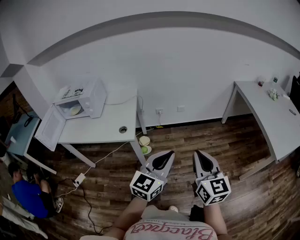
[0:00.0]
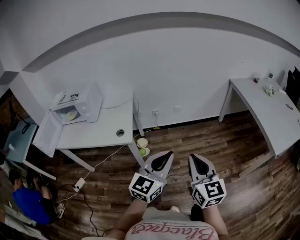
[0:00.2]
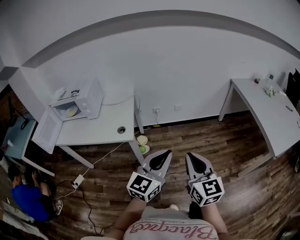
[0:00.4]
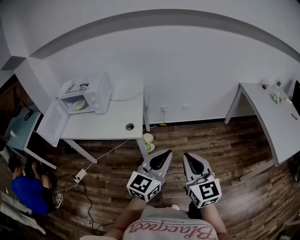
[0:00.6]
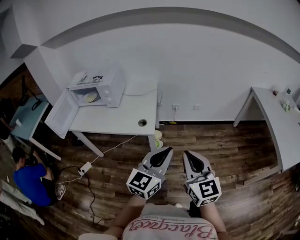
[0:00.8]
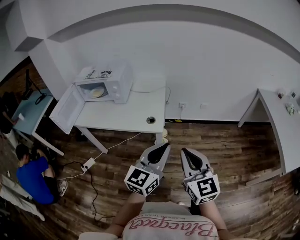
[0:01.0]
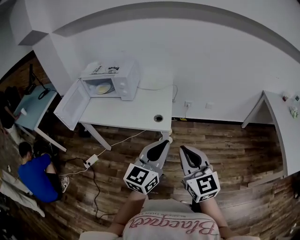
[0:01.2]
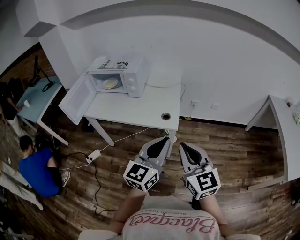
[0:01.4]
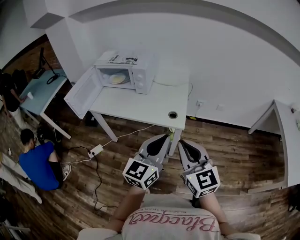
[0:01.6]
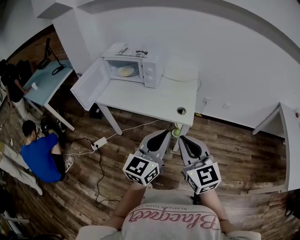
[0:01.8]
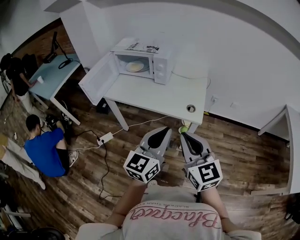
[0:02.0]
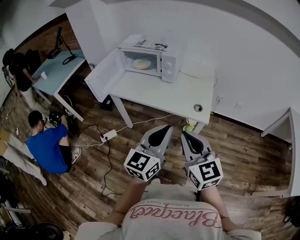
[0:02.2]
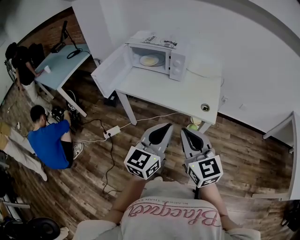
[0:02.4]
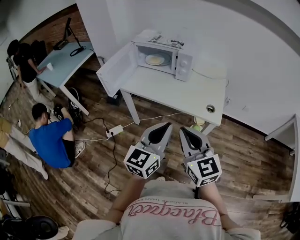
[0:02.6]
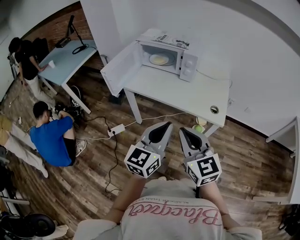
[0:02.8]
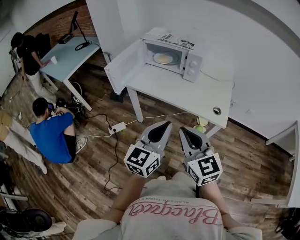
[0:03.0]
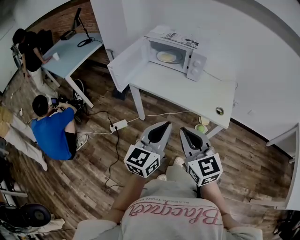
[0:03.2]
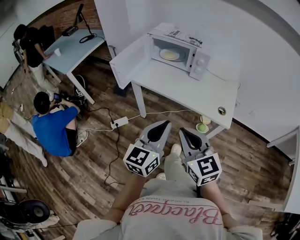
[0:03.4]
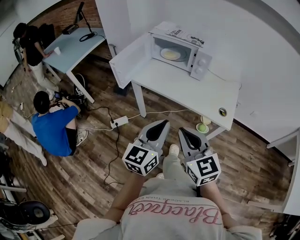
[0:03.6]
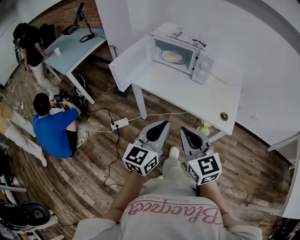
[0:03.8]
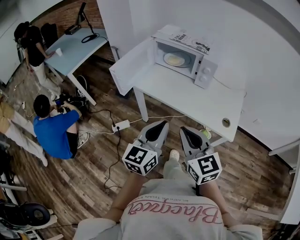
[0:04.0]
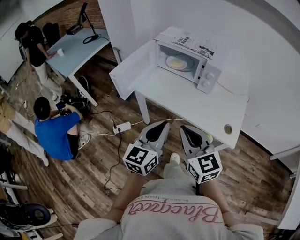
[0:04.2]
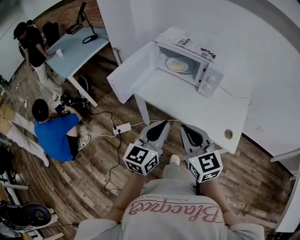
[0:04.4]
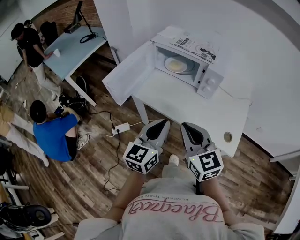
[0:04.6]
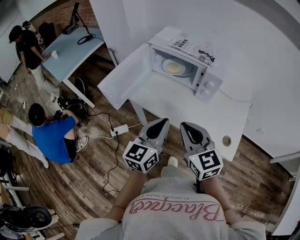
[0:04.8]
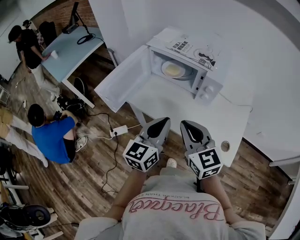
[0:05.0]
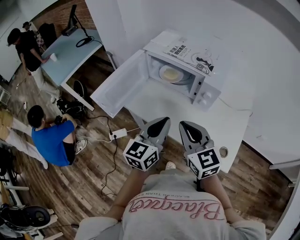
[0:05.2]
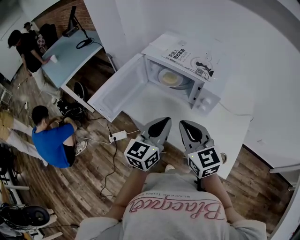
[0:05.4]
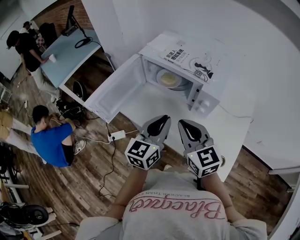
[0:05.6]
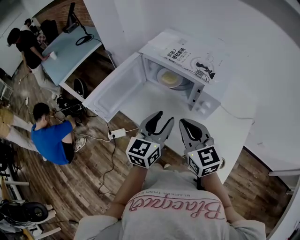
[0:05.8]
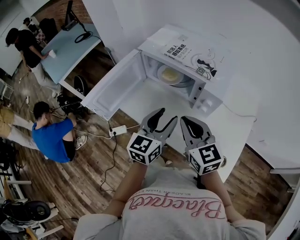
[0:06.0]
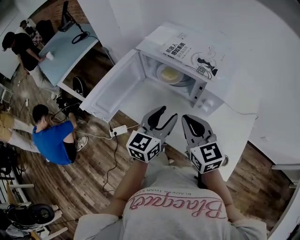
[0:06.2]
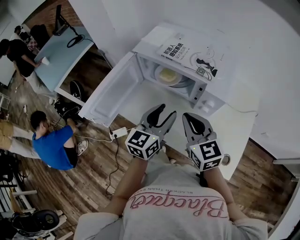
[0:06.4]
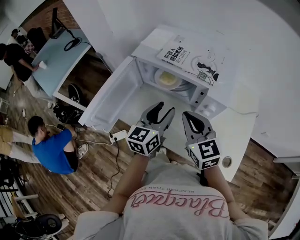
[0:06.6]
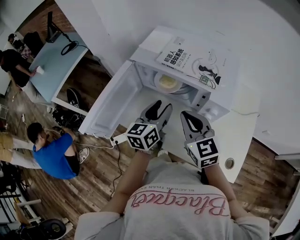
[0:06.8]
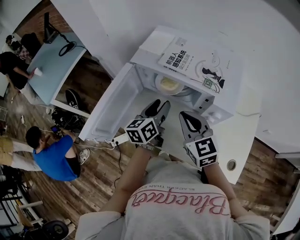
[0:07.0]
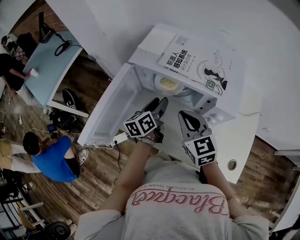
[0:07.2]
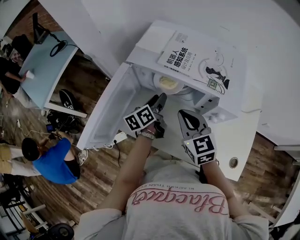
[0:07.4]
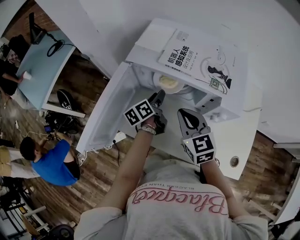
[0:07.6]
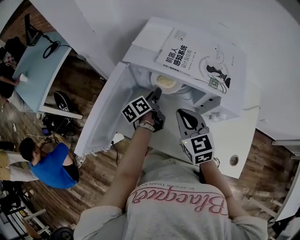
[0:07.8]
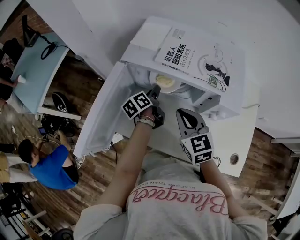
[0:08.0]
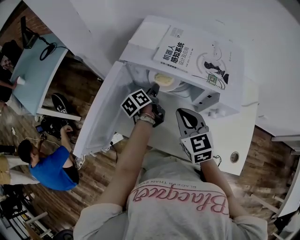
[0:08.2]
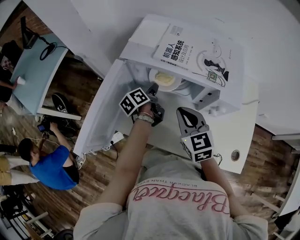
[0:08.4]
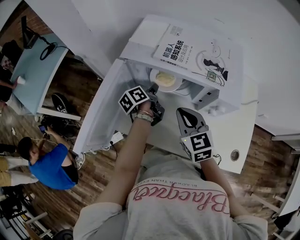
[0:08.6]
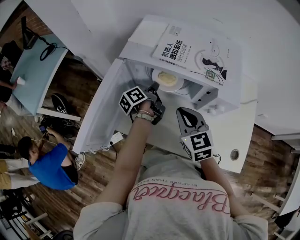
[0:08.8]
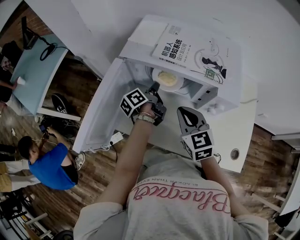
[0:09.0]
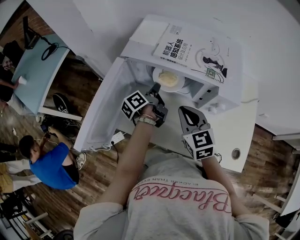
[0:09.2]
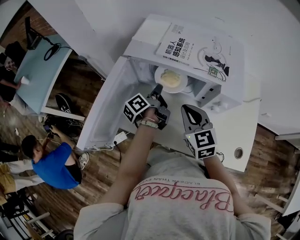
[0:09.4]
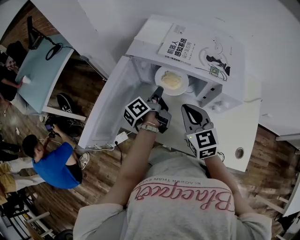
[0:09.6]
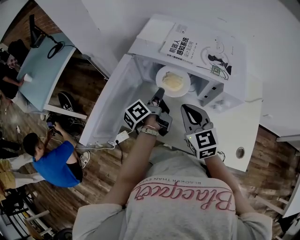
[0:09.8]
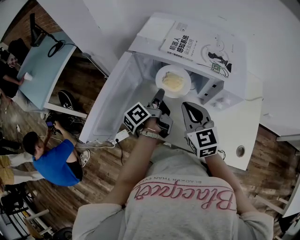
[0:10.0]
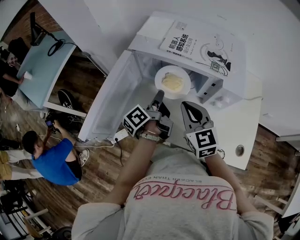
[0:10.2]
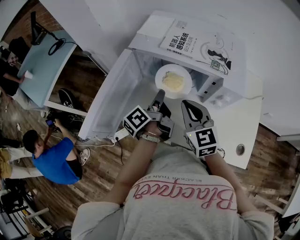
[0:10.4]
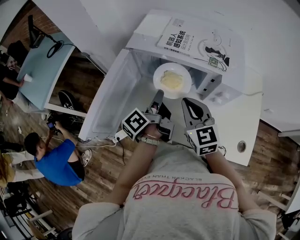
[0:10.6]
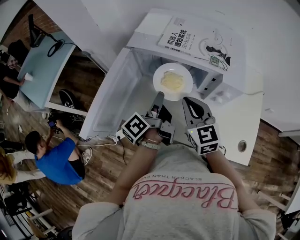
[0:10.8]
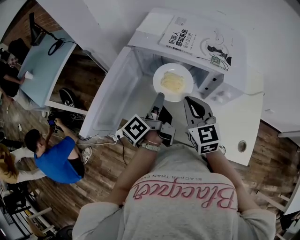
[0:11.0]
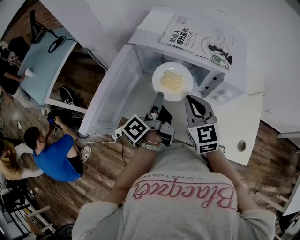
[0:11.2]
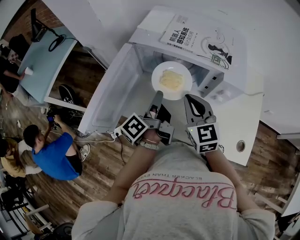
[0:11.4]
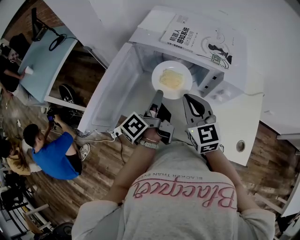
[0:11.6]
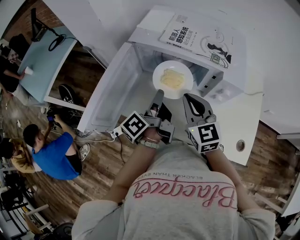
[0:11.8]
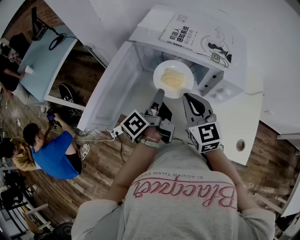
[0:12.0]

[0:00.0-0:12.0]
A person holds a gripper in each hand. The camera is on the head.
0:00.0 to 0:01.6: The two grippers go some 35 cm to the left. The right gripper changes its angle by some 30 degrees; the left gripper changes its angle by roughly 20 degrees.
0:01.6 to 0:03.0: Both grippers travel together to the left, about 25 cm.
0:03.0 to 0:04.4: Both grippers travel together forward, about 15 cm.
0:04.4 to 0:06.0: The right gripper heads forward, covering some 20 cm. Meanwhile the left gripper is displaced forward and to the right by some 20 cm, and opens its fingers.
0:06.0 to 0:07.6: The right gripper travels forward and downward by approximately 15 cm, while the left gripper shifts approximately 30 cm forward and downward, and rolls counterclockwise, seen from behind, by approximately 50 degrees.
0:07.6 to 0:09.0: The left gripper closes up.
0:09.0 to 0:10.4: The left gripper shifts some 10 cm backward and upward.
0:10.4 to 0:12.0: The grippers stay close to where they were, moving slightly.

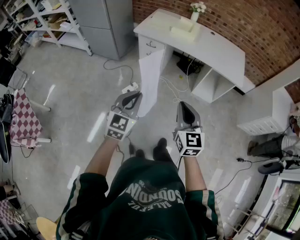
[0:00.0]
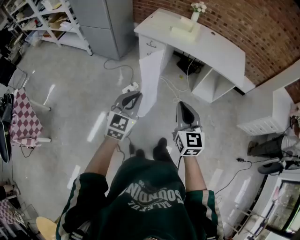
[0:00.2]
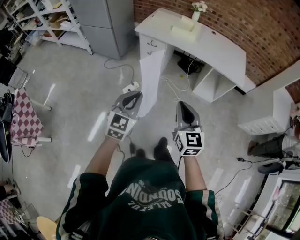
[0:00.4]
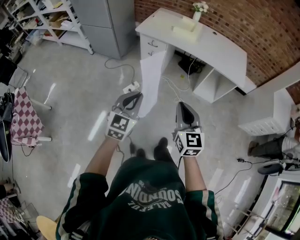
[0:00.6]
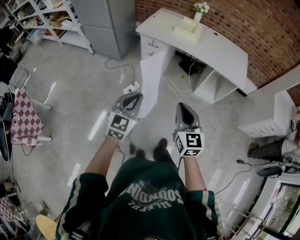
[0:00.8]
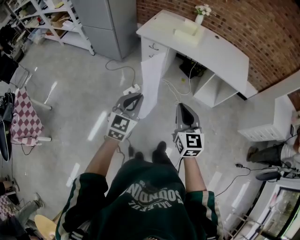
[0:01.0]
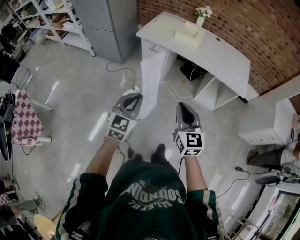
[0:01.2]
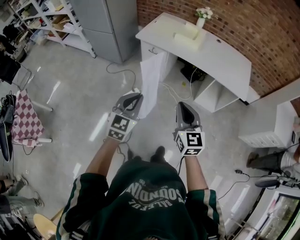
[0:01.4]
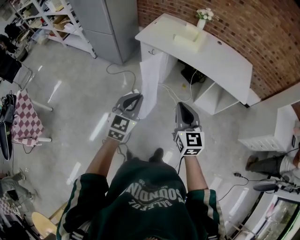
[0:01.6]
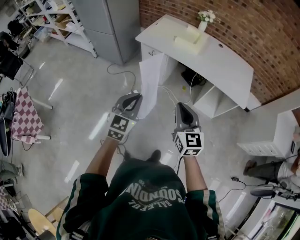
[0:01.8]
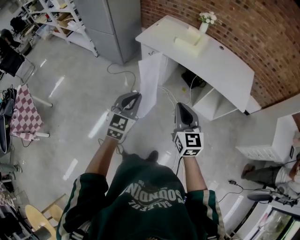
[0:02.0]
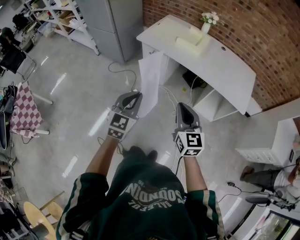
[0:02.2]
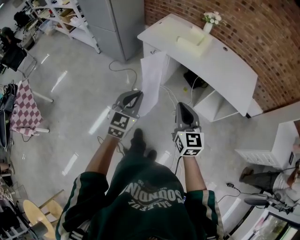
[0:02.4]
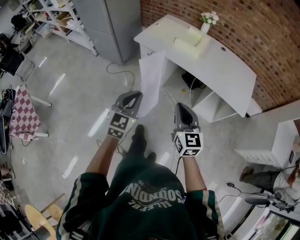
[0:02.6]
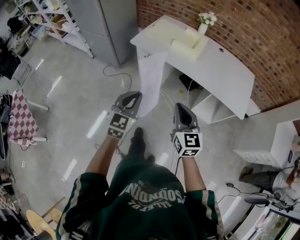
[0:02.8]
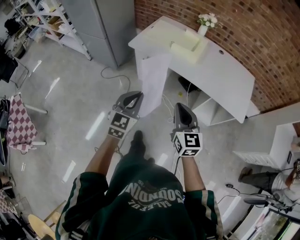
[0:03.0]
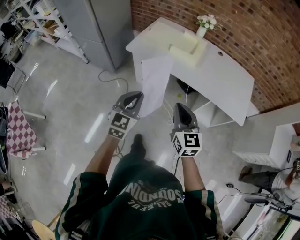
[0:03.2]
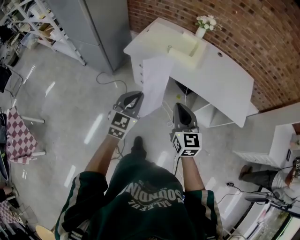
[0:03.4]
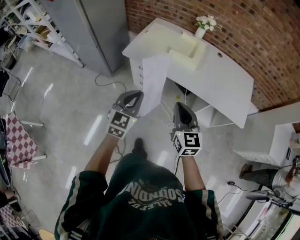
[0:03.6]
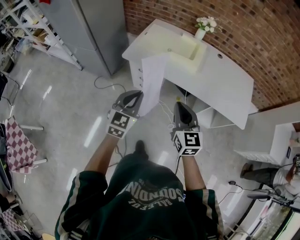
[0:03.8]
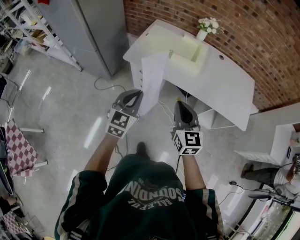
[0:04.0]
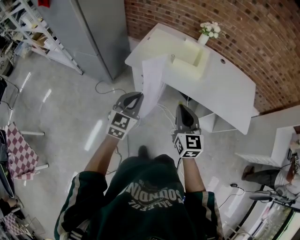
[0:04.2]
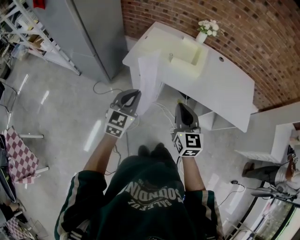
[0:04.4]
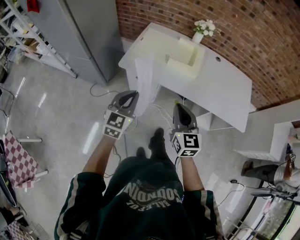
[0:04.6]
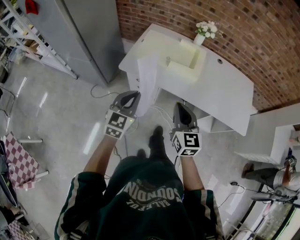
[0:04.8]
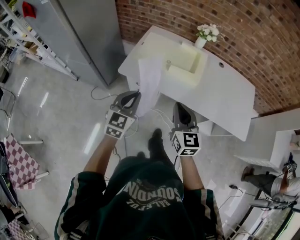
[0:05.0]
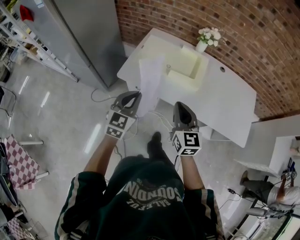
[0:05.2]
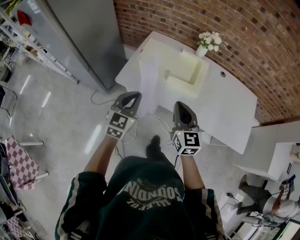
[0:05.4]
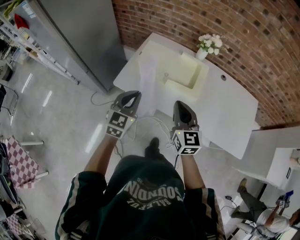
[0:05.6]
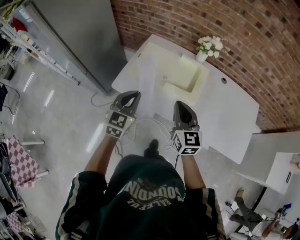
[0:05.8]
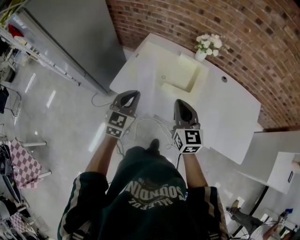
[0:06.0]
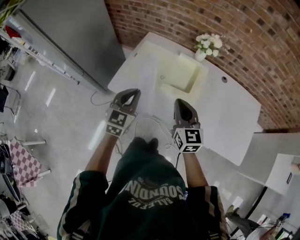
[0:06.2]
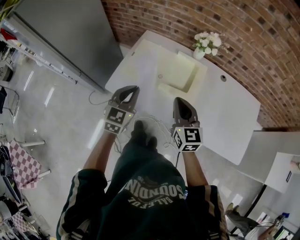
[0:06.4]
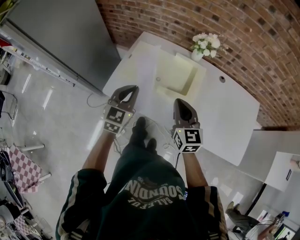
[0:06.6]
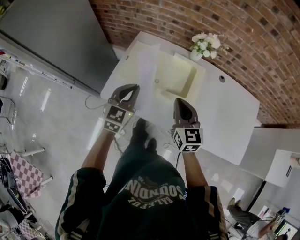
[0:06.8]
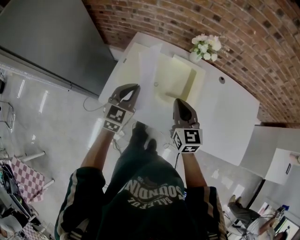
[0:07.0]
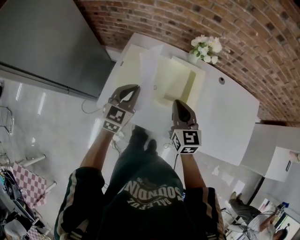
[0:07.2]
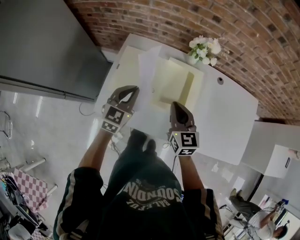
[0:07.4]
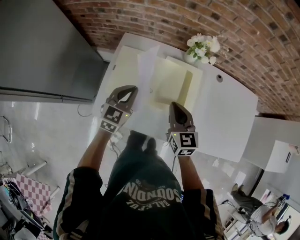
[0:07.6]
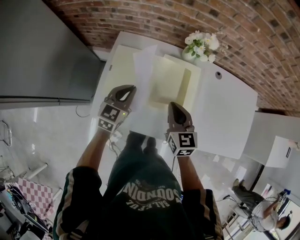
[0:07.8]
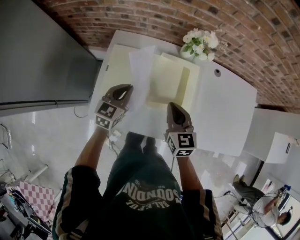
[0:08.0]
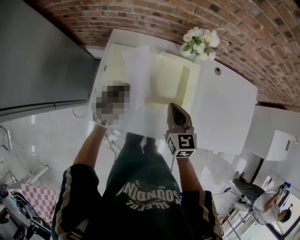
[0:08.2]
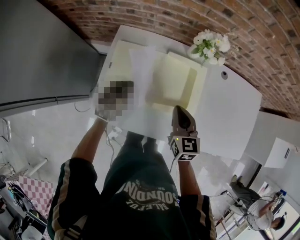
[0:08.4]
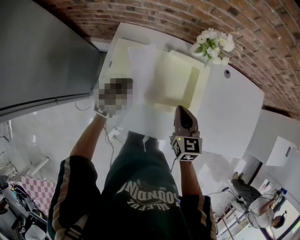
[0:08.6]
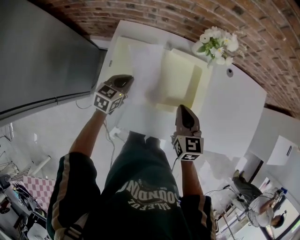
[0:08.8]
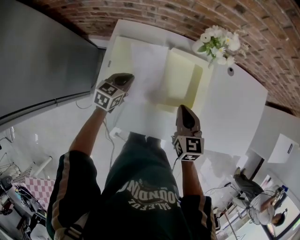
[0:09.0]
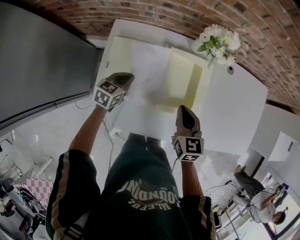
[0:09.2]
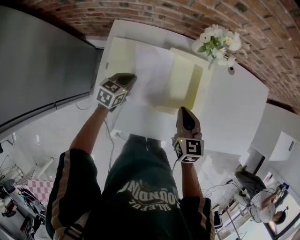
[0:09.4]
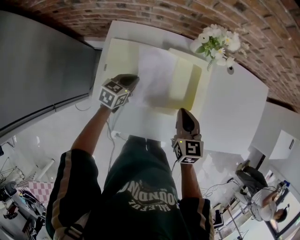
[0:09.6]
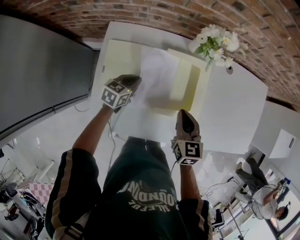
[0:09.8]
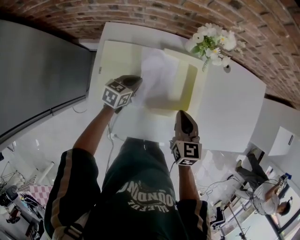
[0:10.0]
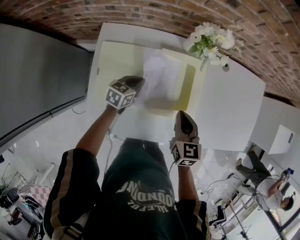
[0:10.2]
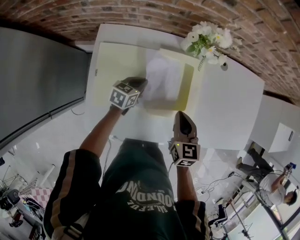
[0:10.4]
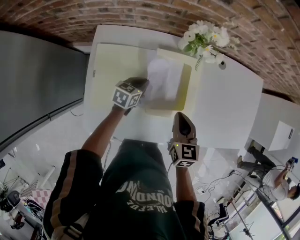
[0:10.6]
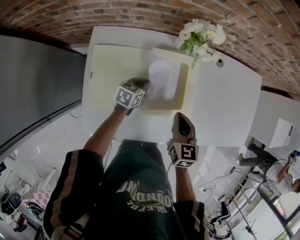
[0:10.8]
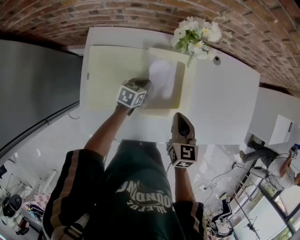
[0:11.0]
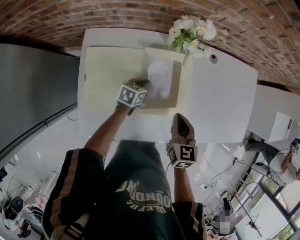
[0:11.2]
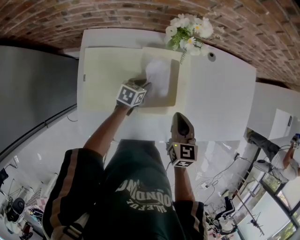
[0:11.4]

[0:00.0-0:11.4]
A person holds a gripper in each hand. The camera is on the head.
0:00.0 to 0:01.4: The two grippers go some 10 cm forward.
0:01.4 to 0:02.8: The grippers both shift forward and to the right by roughly 15 cm.
0:02.8 to 0:04.2: The left gripper moves forward, some 25 cm. The right gripper moves forward and to the left, some 25 cm.
0:04.2 to 0:05.6: Both grippers travel together forward, about 20 cm.
0:05.6 to 0:07.2: Both grippers move forward, some 20 cm.
0:07.2 to 0:08.6: The left gripper heads downward and forward, covering about 20 cm, and turns by approximately 20 degrees; the right gripper is displaced downward and forward by roughly 10 cm.
0:08.6 to 0:10.0: The left gripper goes some 10 cm downward, forward and to the right.
0:10.0 to 0:11.4: The left gripper goes some 10 cm to the right, and opens its fingers, while the right gripper moves to the right, about 5 cm.
